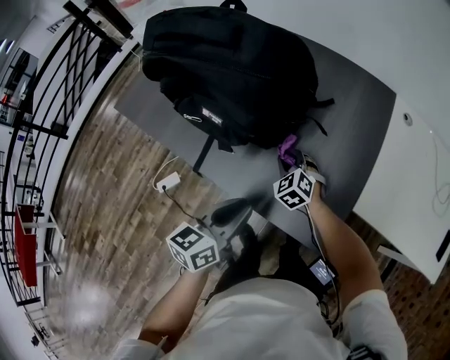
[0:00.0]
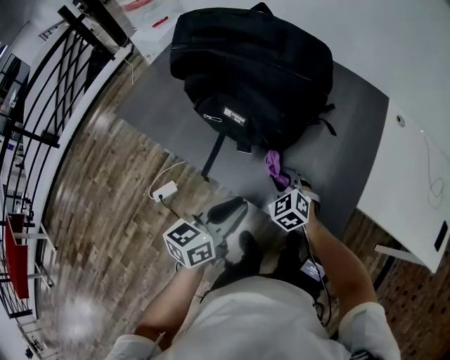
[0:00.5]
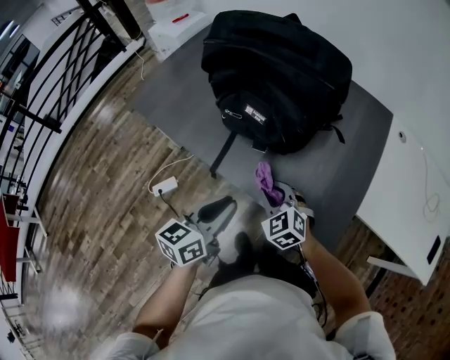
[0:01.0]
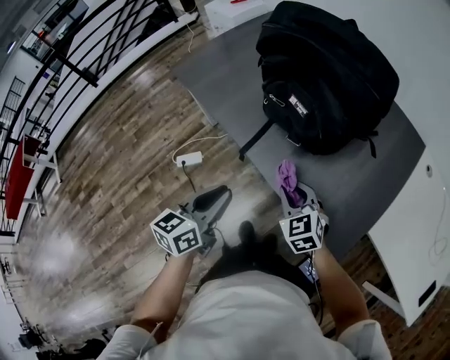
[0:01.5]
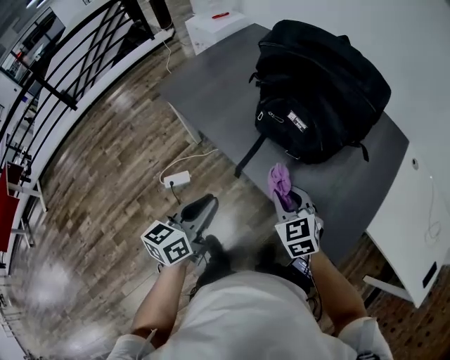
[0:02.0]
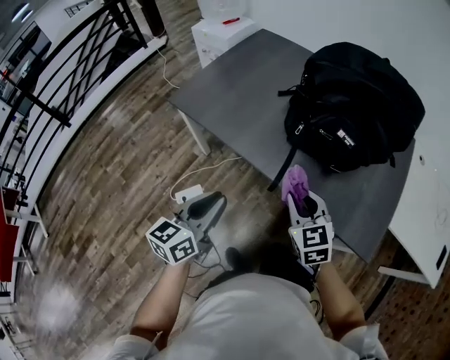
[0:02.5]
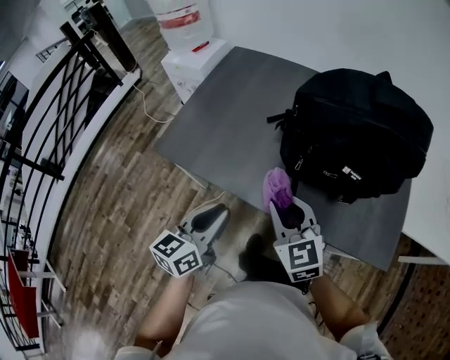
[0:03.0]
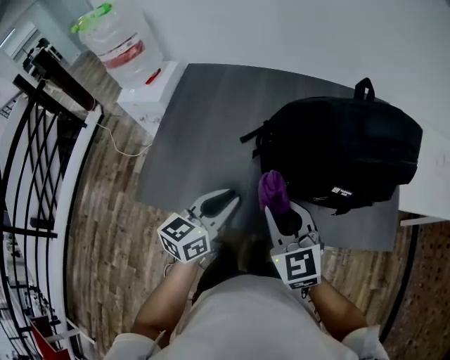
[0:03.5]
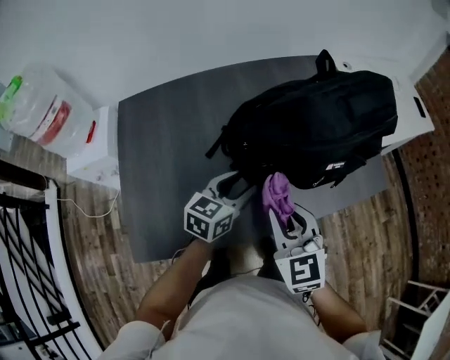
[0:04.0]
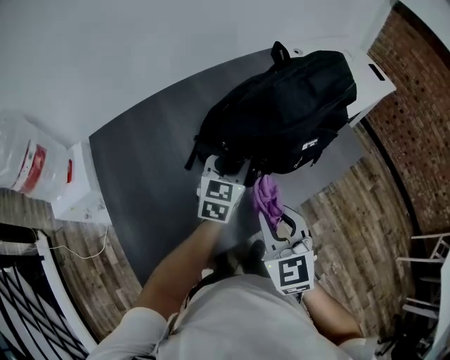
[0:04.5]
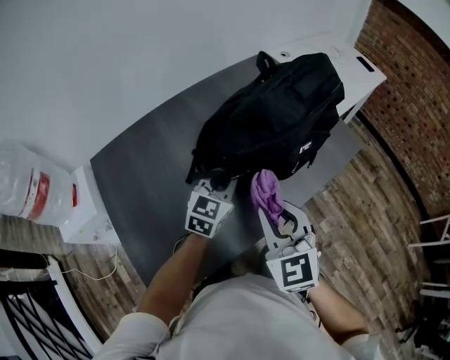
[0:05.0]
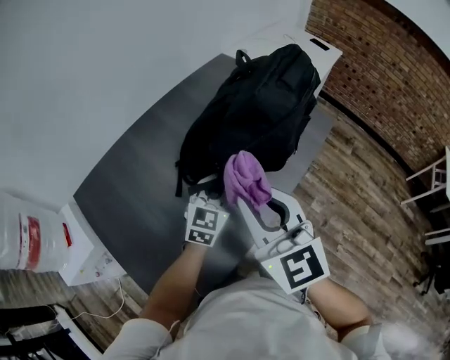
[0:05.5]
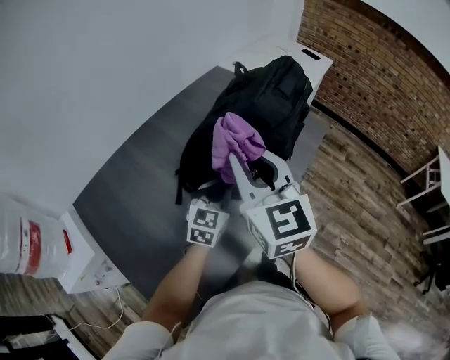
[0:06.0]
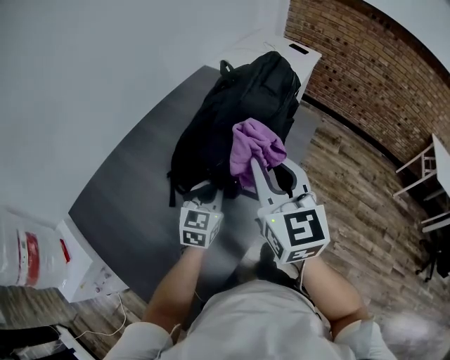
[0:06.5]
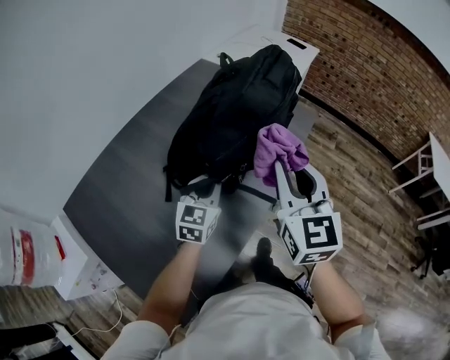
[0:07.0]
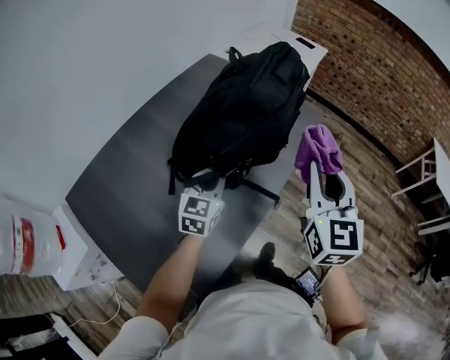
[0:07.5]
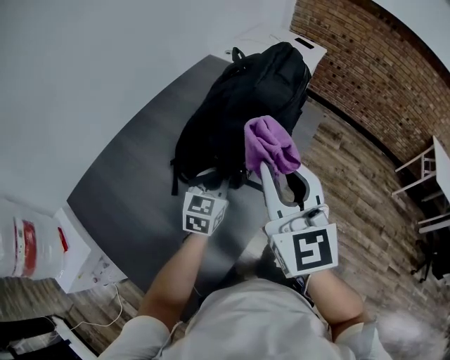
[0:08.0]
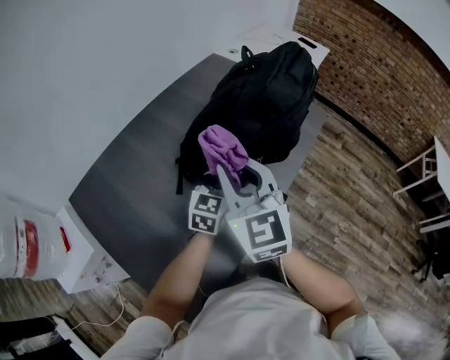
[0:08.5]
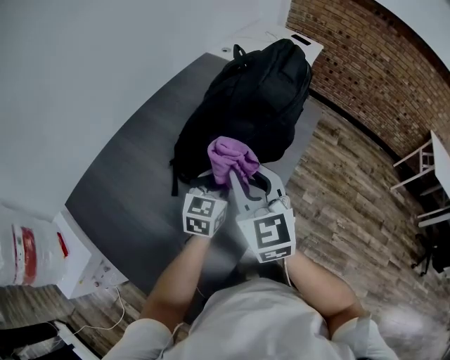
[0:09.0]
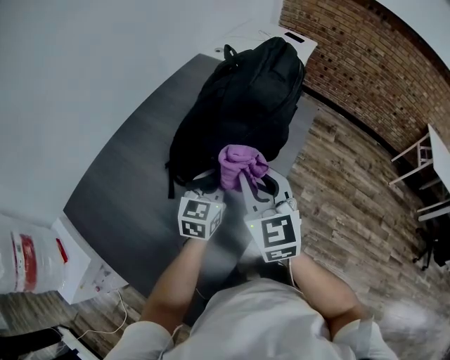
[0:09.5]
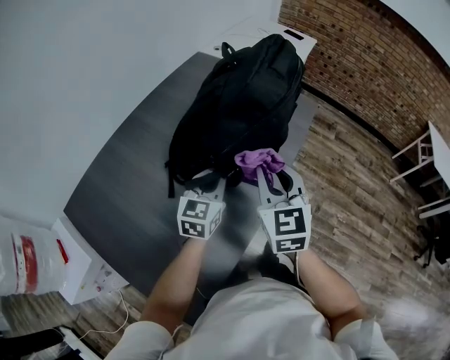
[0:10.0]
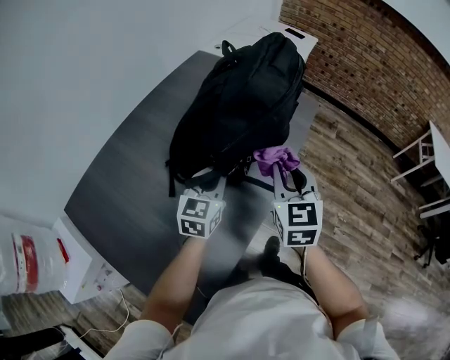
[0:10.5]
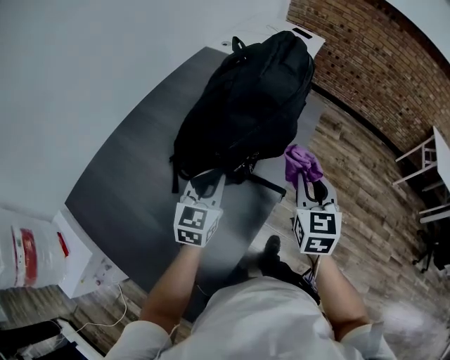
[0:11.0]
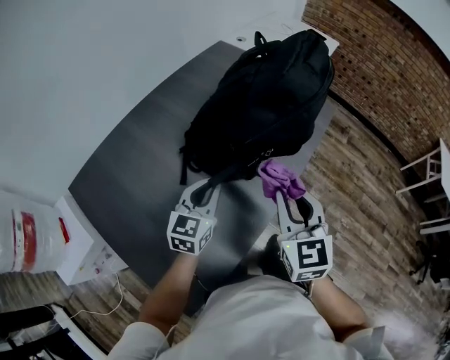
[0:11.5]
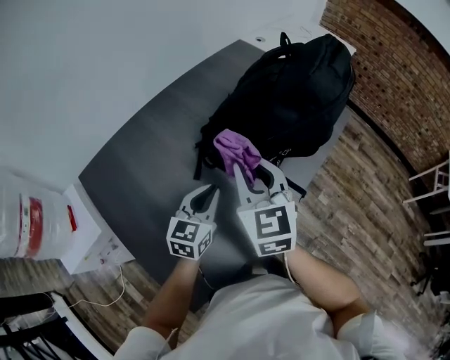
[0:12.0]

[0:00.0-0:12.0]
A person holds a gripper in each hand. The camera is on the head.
0:00.0 to 0:02.0: The right gripper is displaced to the left, backward and upward by some 25 cm; the left gripper travels to the left by about 25 cm.
0:02.0 to 0:04.0: The right gripper changes place by about 30 cm, and changes its angle by approximately 60 degrees, while the left gripper ends up roughly 40 cm from where it was, swivels about 70 degrees, and opens.
0:04.0 to 0:06.0: The left gripper rotates approximately 30 degrees, and closes up. Meanwhile the right gripper moves upward, roughly 15 cm, and swivels approximately 40 degrees.
0:06.0 to 0:08.0: The right gripper goes to the right and returns, roughly 20 cm each way.
0:08.0 to 0:10.0: The right gripper is displaced downward by about 10 cm.
0:10.0 to 0:12.0: The right gripper moves to the left, some 15 cm; the left gripper shifts approximately 15 cm backward and to the left.

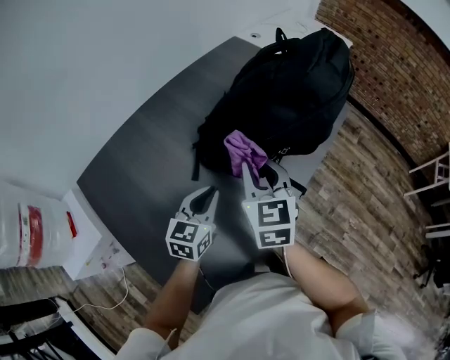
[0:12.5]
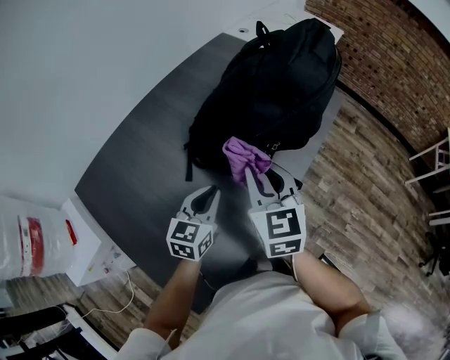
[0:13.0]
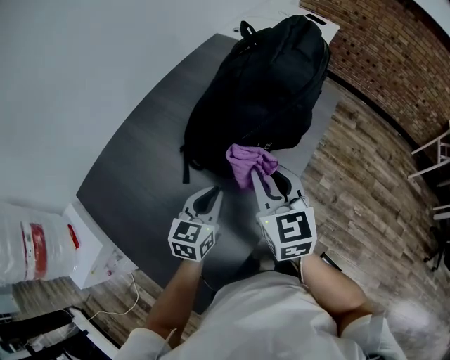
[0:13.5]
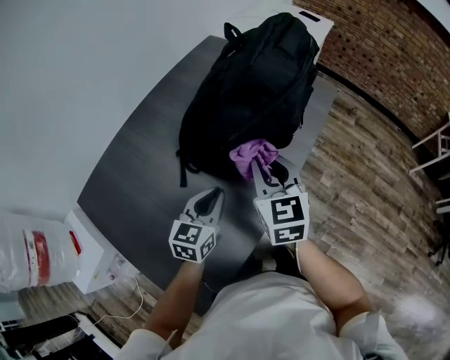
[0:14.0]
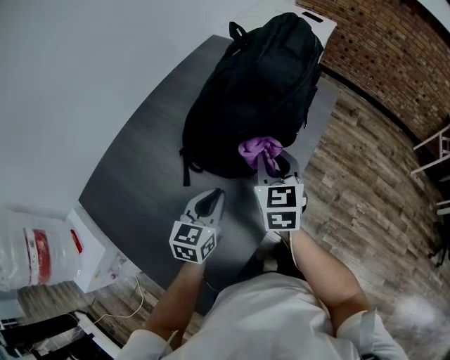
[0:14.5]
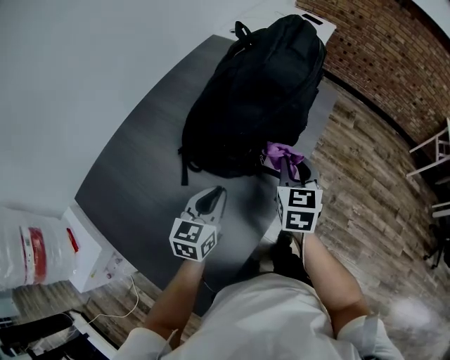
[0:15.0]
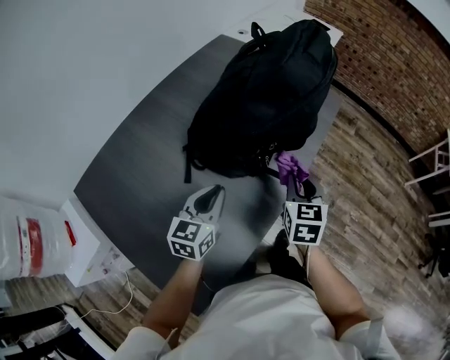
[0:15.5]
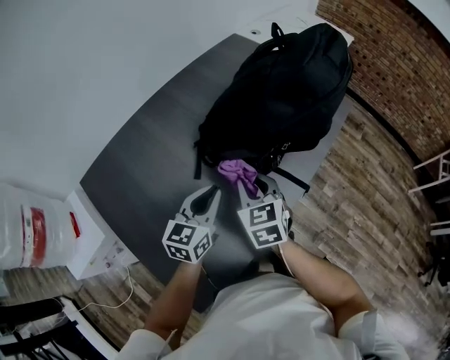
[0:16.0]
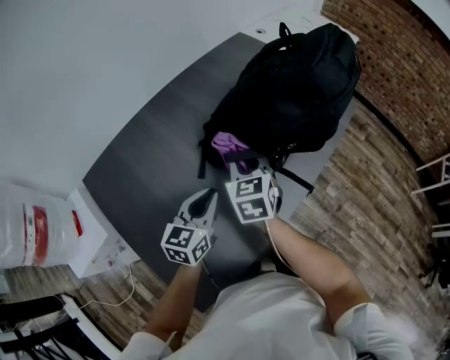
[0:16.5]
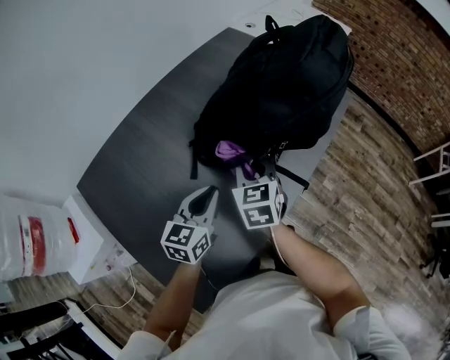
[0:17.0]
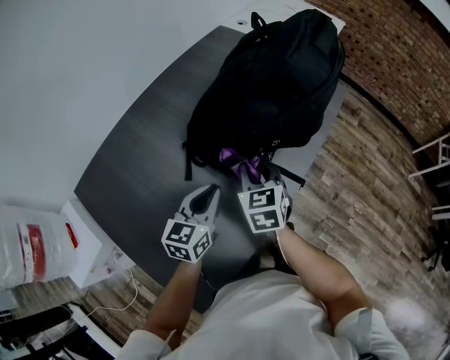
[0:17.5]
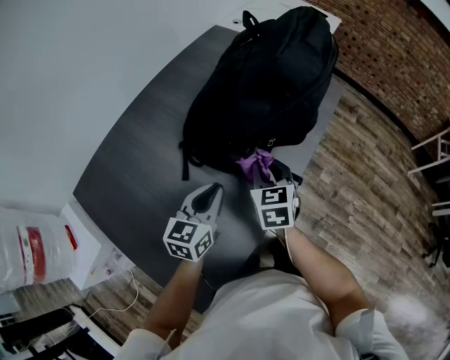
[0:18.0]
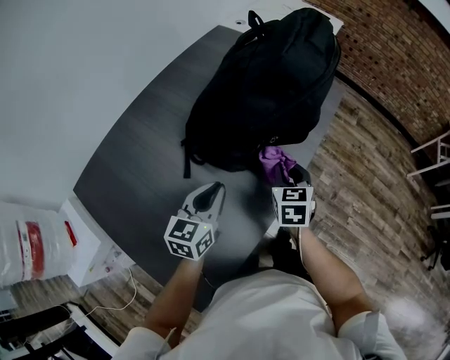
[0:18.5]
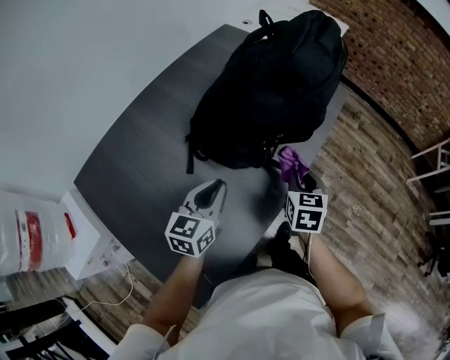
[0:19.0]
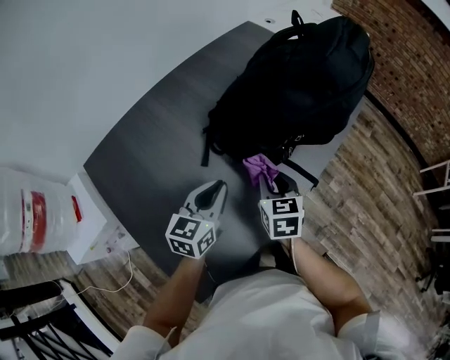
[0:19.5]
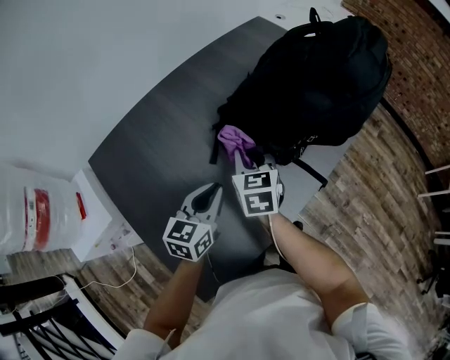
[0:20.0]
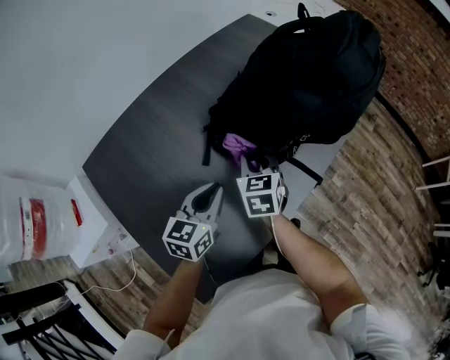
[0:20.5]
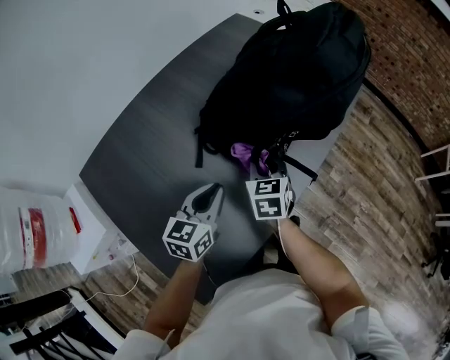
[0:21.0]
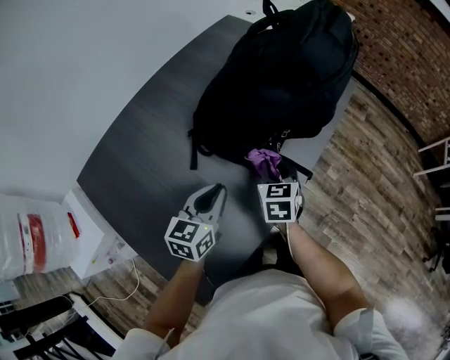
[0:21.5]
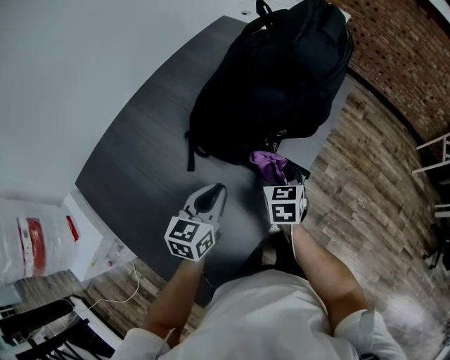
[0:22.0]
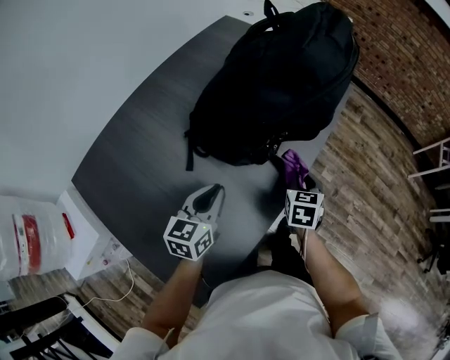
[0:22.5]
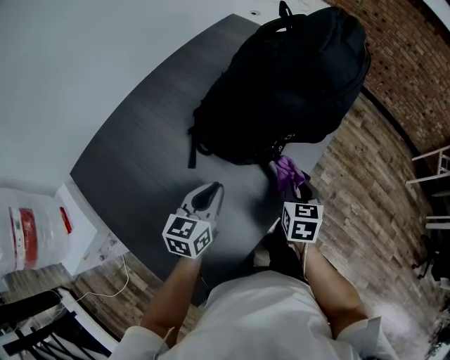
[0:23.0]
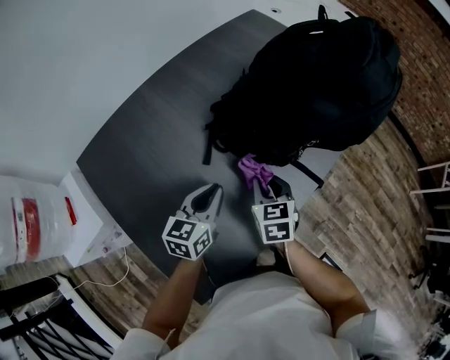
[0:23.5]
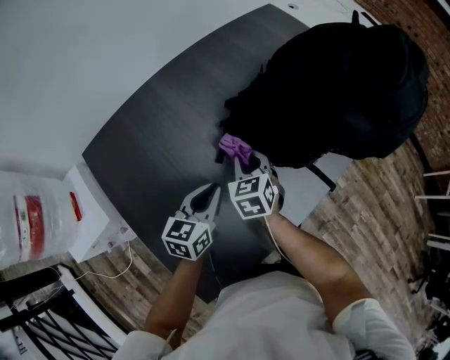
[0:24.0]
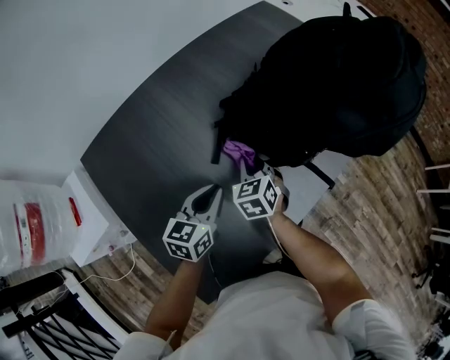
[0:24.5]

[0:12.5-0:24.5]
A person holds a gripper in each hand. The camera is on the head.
0:12.5 to 0:14.5: The right gripper moves to the right, about 10 cm; the left gripper goes approximately 5 cm to the right.
0:14.5 to 0:16.5: The left gripper moves to the left, about 5 cm. The right gripper travels to the left by about 15 cm.
0:16.5 to 0:18.5: The left gripper travels to the right by about 5 cm. Meanwhile the right gripper goes approximately 20 cm to the right, and turns by approximately 20 degrees.
0:18.5 to 0:20.5: The right gripper shifts some 15 cm to the left; the left gripper goes roughly 5 cm to the left.
0:20.5 to 0:22.5: The left gripper ends up approximately 5 cm from where it was; the right gripper moves to the right, some 20 cm, and rotates roughly 30 degrees.
0:22.5 to 0:24.5: The right gripper is displaced to the left by approximately 25 cm, and swivels some 40 degrees; the left gripper moves to the left, some 10 cm.

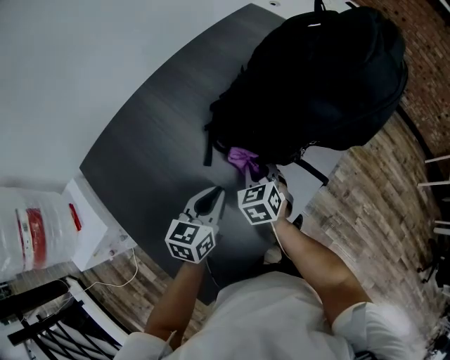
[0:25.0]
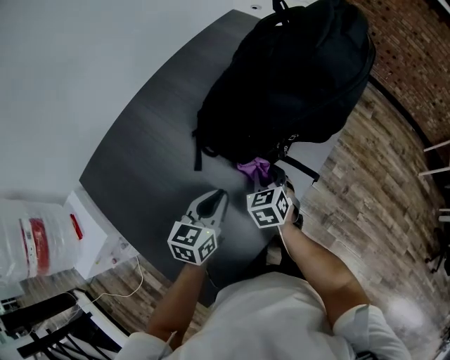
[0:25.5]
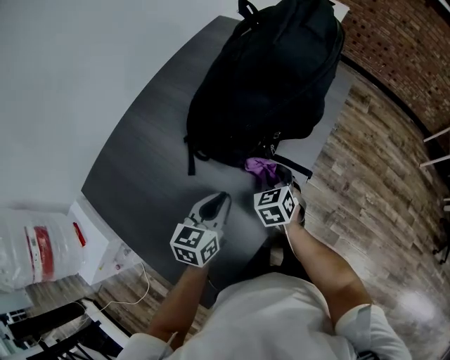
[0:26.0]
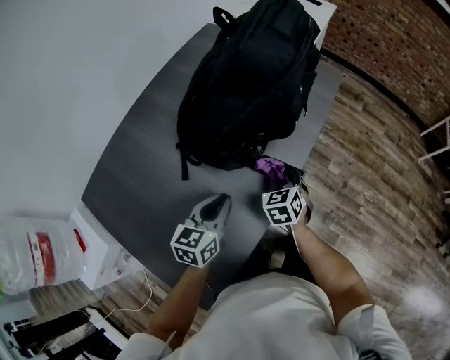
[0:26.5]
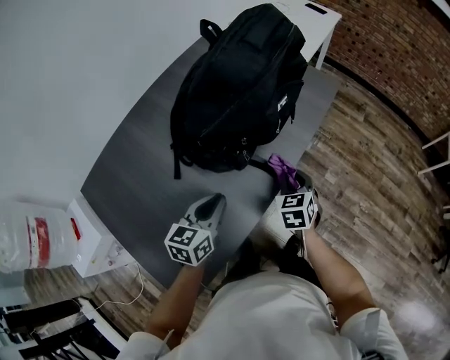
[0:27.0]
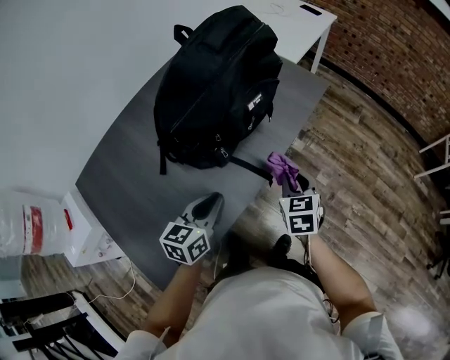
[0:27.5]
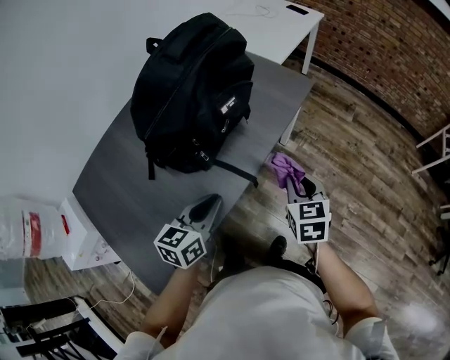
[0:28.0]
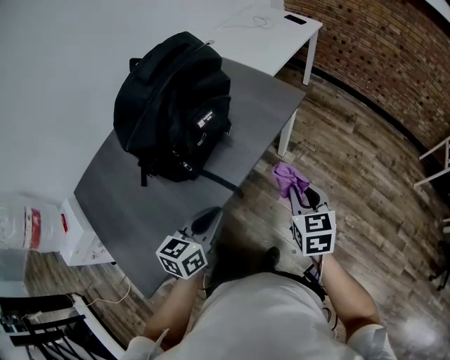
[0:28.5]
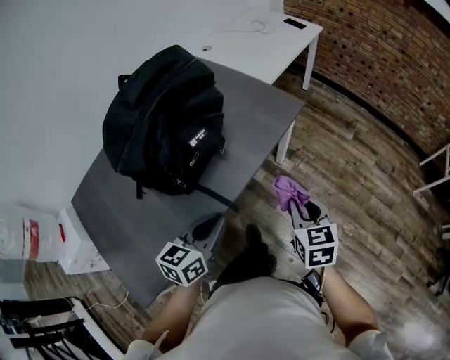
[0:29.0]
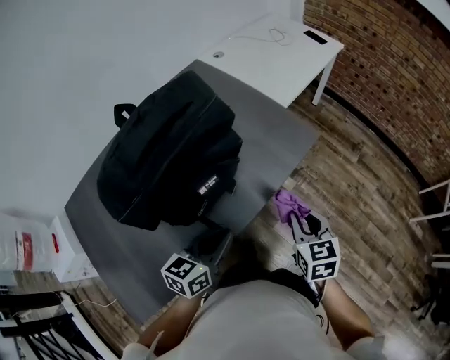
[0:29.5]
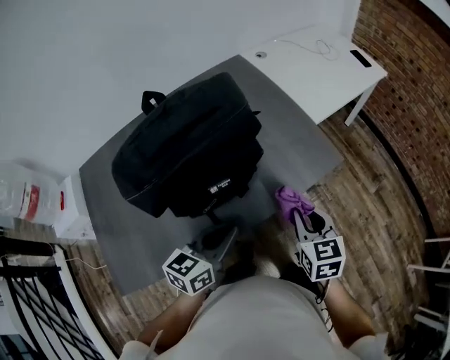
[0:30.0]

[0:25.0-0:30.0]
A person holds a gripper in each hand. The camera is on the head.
0:25.0 to 0:27.5: The right gripper moves to the right, roughly 30 cm; the left gripper heads to the right, covering approximately 20 cm.
0:27.5 to 0:30.0: Both grippers travel together forward and to the right, about 20 cm. The right gripper turns by about 30 degrees.
